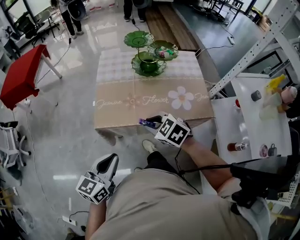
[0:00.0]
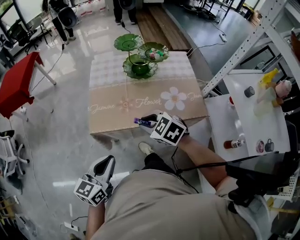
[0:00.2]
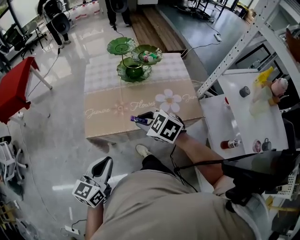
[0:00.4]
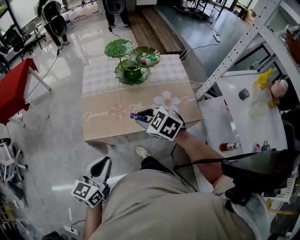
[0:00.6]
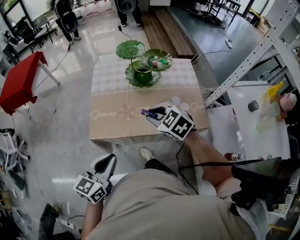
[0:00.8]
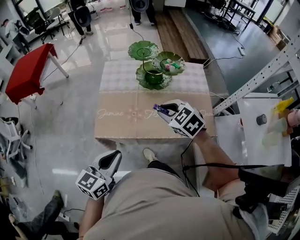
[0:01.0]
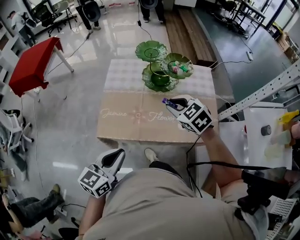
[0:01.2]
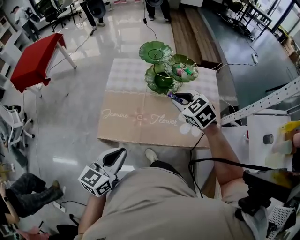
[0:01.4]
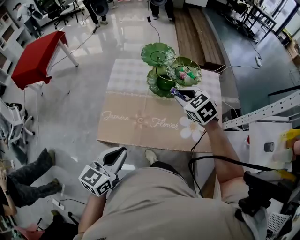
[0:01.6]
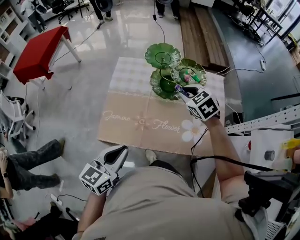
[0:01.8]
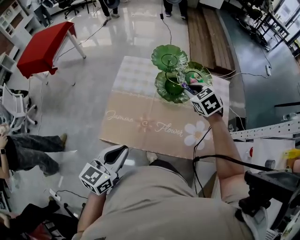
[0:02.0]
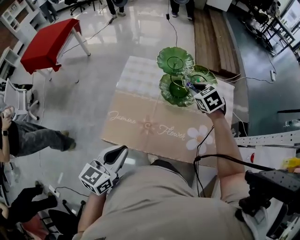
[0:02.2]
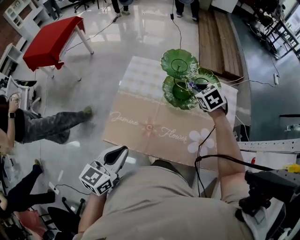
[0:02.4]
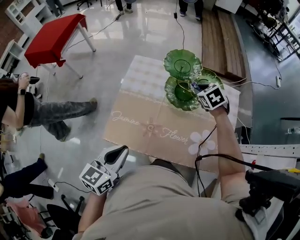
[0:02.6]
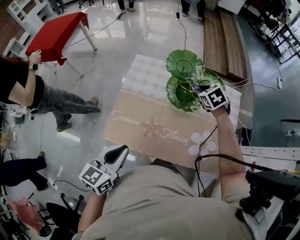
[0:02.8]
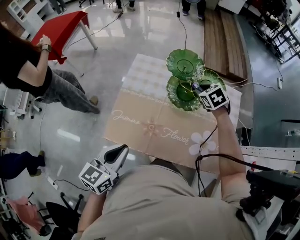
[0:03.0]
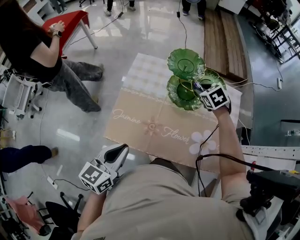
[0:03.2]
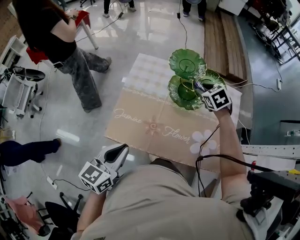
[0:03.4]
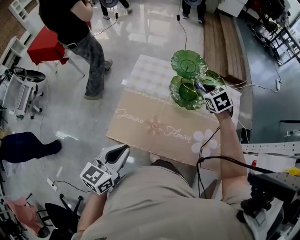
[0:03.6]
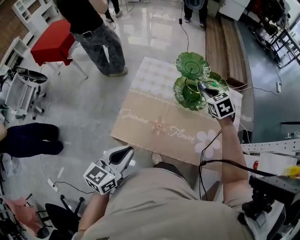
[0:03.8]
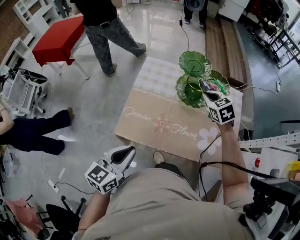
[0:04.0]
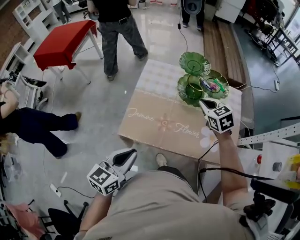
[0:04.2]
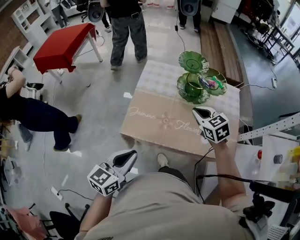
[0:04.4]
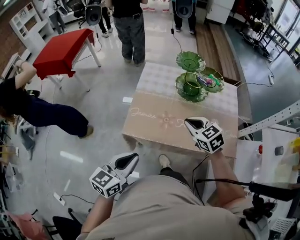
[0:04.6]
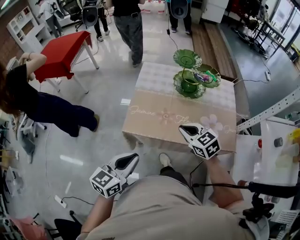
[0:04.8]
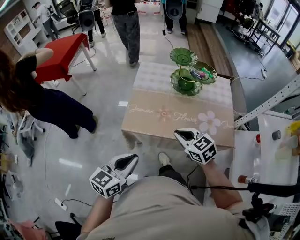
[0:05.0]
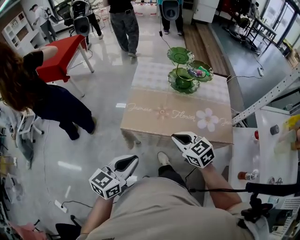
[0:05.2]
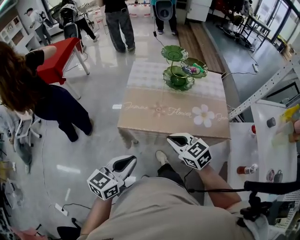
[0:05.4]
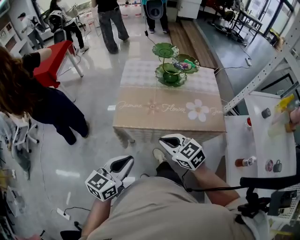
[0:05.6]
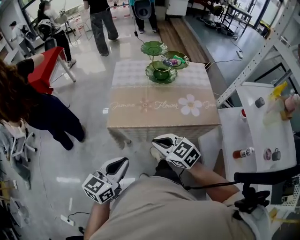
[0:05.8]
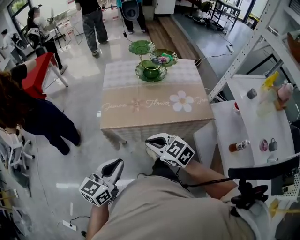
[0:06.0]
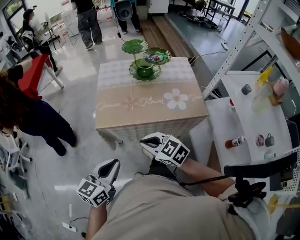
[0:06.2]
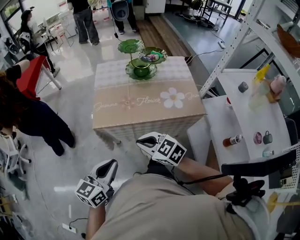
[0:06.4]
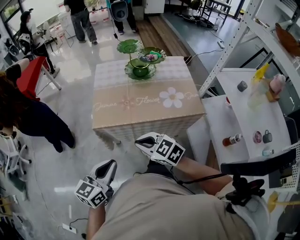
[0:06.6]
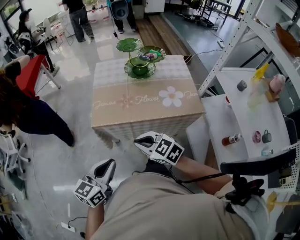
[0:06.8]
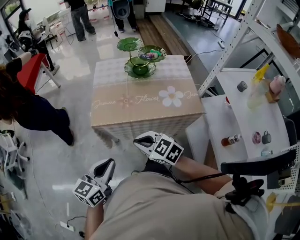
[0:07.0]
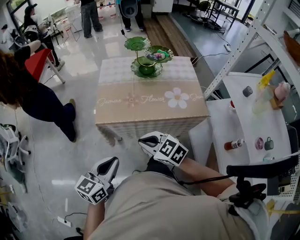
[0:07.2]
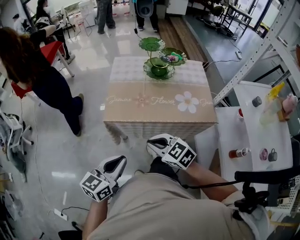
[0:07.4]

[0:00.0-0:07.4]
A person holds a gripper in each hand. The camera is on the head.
0.0 to 1.4 s: The left gripper moves forward and to the right, some 15 cm. Meanwhile the right gripper shifts about 25 cm forward and to the right.
1.4 to 3.0 s: The left gripper goes approximately 10 cm forward, while the right gripper travels forward and downward by roughly 20 cm.
3.0 to 4.4 s: The right gripper travels backward by some 20 cm, and changes its angle by about 20 degrees. The left gripper shifts roughly 10 cm backward.
4.4 to 6.0 s: The right gripper heads backward, covering approximately 30 cm; the left gripper moves backward, roughly 15 cm.
6.0 to 7.4 s: There are only small adjustments of the grippers.

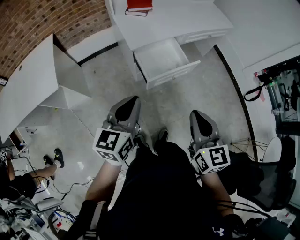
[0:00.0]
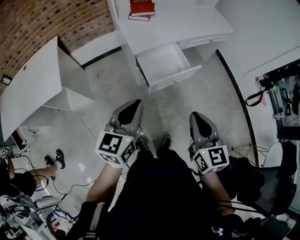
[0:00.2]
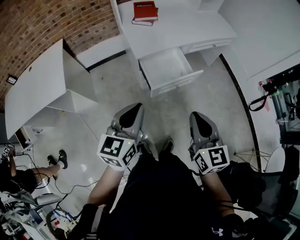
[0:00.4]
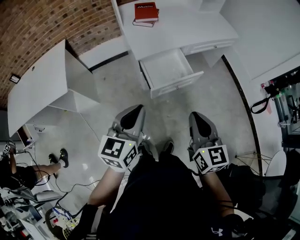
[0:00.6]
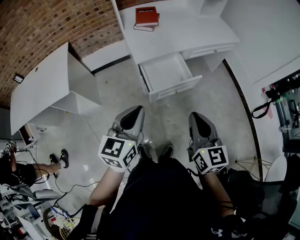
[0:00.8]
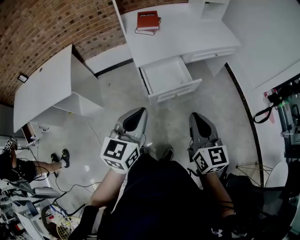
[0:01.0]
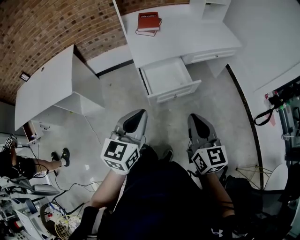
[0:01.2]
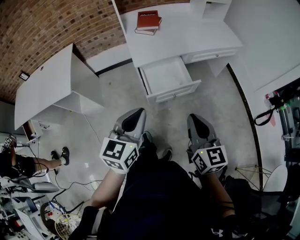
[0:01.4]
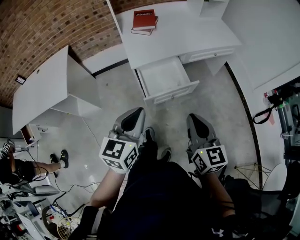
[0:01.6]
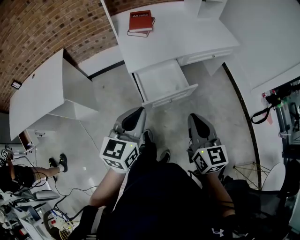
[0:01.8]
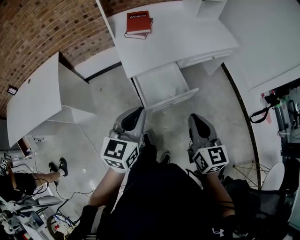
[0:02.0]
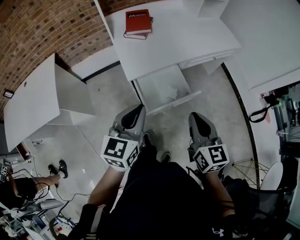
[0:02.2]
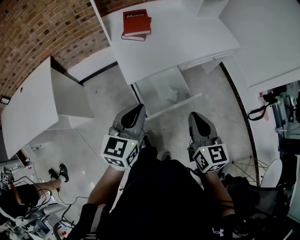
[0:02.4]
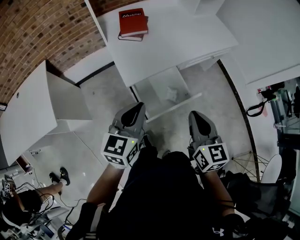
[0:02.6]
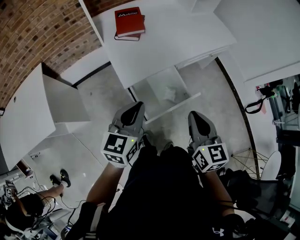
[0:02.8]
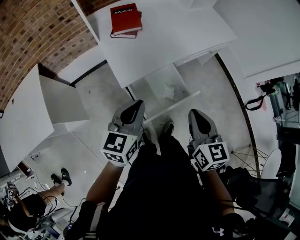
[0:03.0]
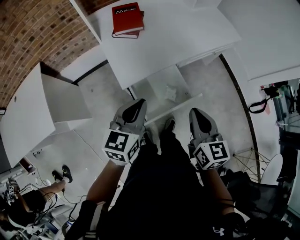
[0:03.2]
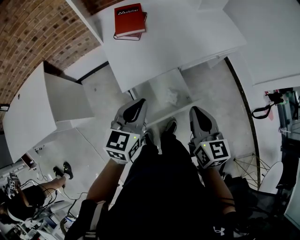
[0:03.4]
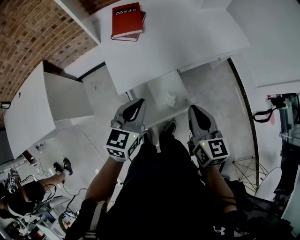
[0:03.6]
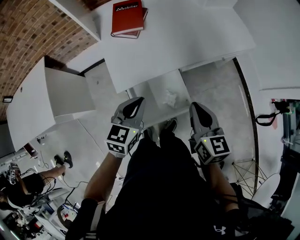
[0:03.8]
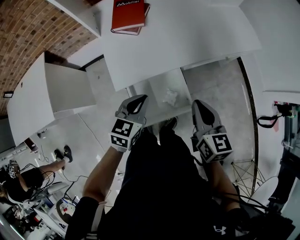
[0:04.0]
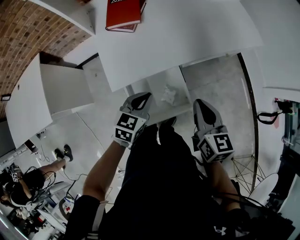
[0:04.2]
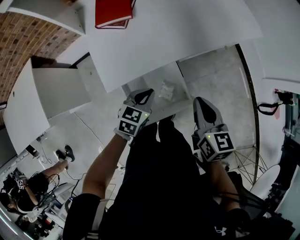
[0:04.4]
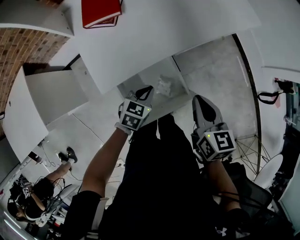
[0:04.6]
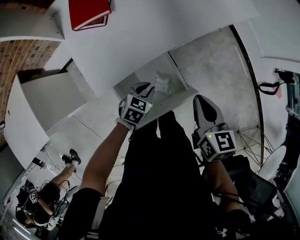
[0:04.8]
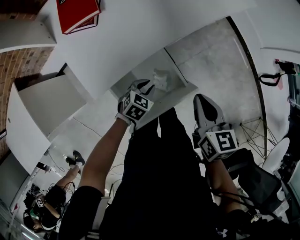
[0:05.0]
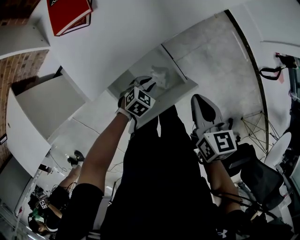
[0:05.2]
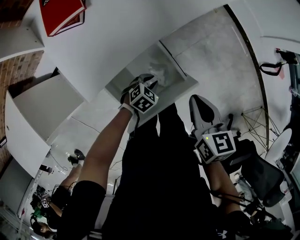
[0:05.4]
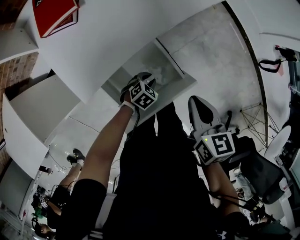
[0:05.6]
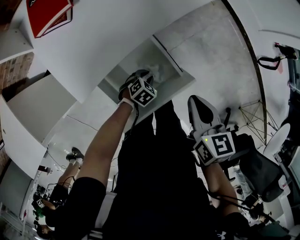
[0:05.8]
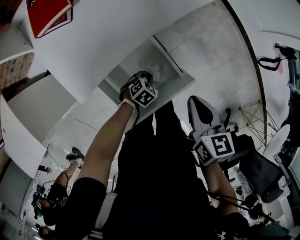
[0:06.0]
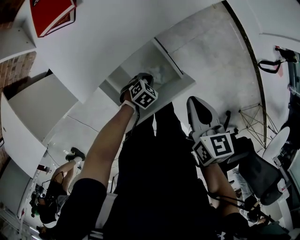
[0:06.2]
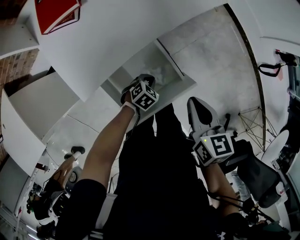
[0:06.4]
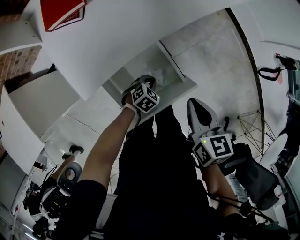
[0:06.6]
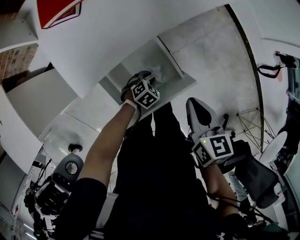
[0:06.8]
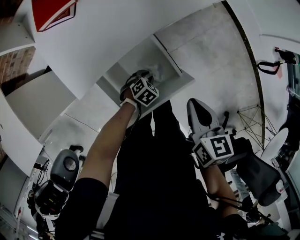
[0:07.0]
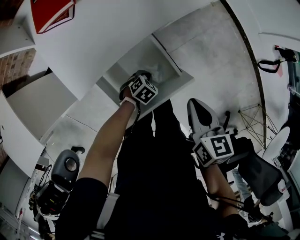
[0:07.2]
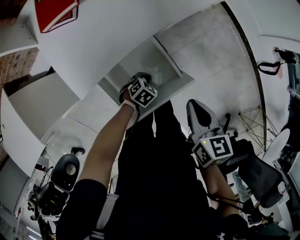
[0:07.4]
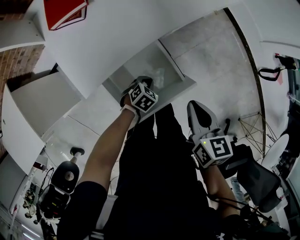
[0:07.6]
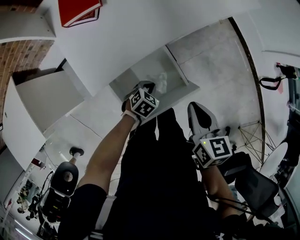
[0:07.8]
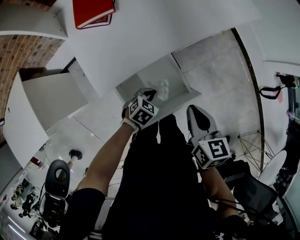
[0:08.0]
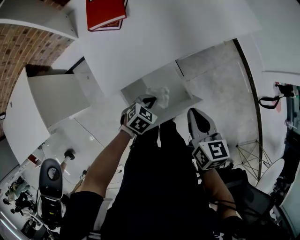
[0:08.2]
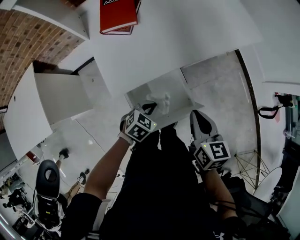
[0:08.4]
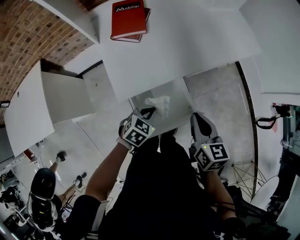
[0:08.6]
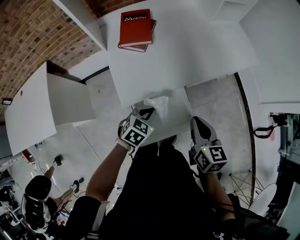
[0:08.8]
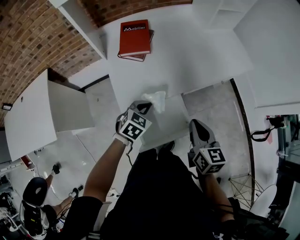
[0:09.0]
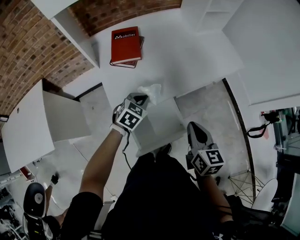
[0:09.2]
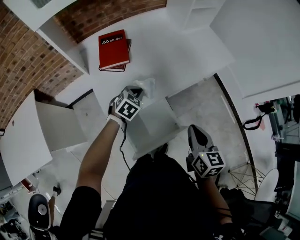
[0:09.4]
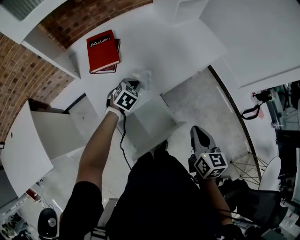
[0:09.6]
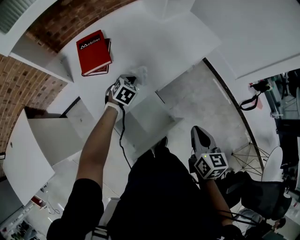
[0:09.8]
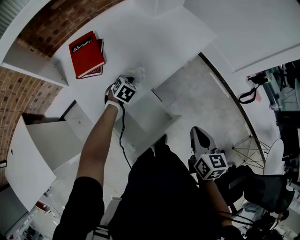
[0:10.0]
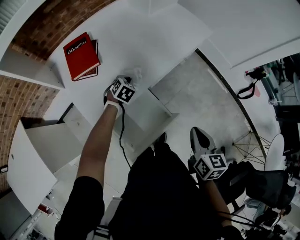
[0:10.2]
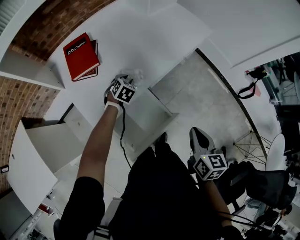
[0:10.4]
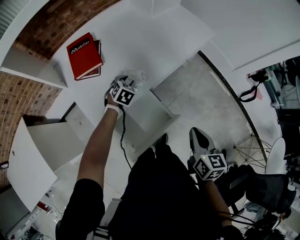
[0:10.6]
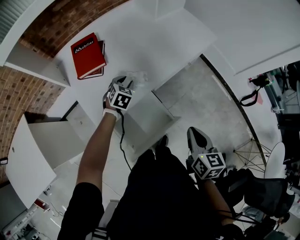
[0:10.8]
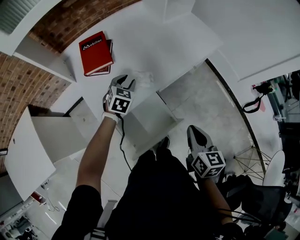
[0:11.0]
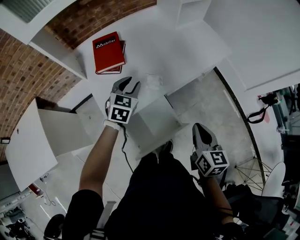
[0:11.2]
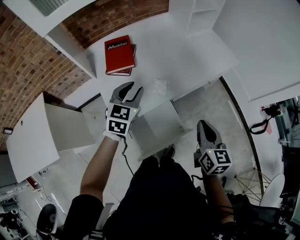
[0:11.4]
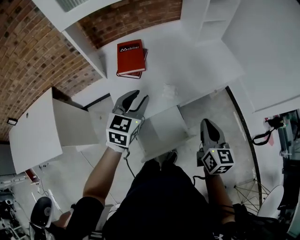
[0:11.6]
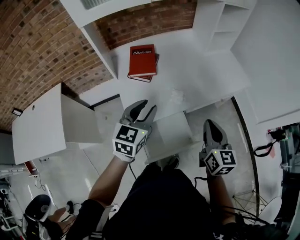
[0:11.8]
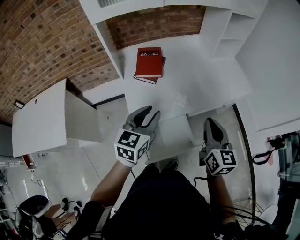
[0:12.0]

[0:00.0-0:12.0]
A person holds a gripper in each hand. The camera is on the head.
0.0 to 1.6 s: The left gripper is displaced to the right by about 10 cm. The right gripper travels to the right and forward by some 10 cm.
1.6 to 3.0 s: The two grippers go roughly 20 cm forward.
3.0 to 4.4 s: The left gripper goes approximately 25 cm downward, forward and to the right, and rotates approximately 20 degrees. Meanwhile the right gripper is displaced forward, downward and to the right by approximately 20 cm.
4.4 to 6.0 s: The left gripper heads downward, covering some 25 cm, changes its angle by roughly 40 degrees, and opens, then closes again, while the right gripper moves downward, roughly 10 cm.
6.0 to 7.6 s: The left gripper opens and closes again.
7.6 to 9.0 s: The right gripper is displaced upward and to the left by approximately 15 cm, while the left gripper travels upward and to the left by some 30 cm, and swivels about 30 degrees.
9.0 to 10.4 s: The left gripper goes some 20 cm forward and downward, and opens up. Meanwhile the right gripper travels to the right by some 15 cm, and swivels about 30 degrees.
10.4 to 12.0 s: The right gripper is displaced upward, to the left and forward by some 20 cm, and rotates about 30 degrees; the left gripper heads upward and backward, covering about 35 cm, and angles its fingers upward, by roughly 40 degrees.

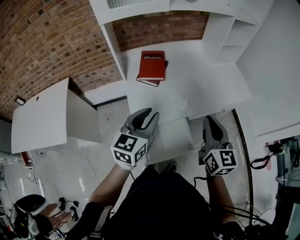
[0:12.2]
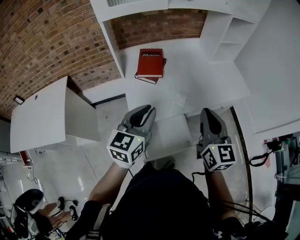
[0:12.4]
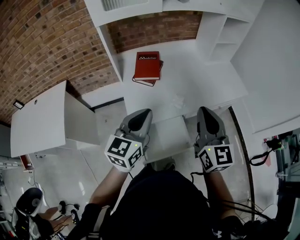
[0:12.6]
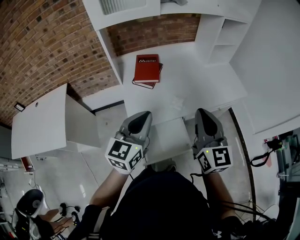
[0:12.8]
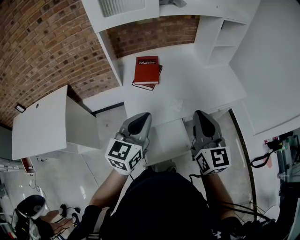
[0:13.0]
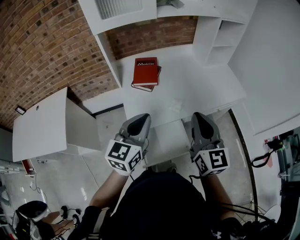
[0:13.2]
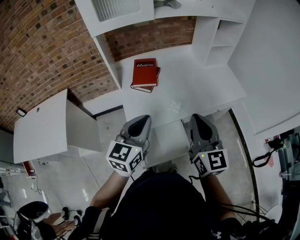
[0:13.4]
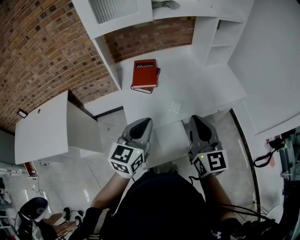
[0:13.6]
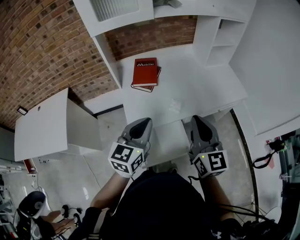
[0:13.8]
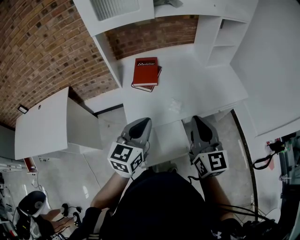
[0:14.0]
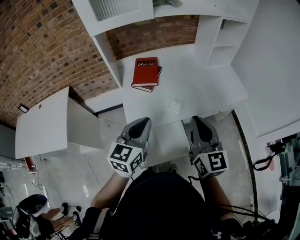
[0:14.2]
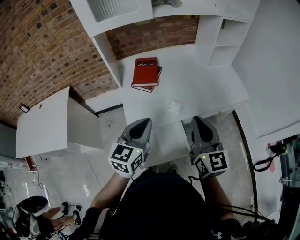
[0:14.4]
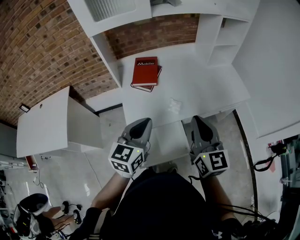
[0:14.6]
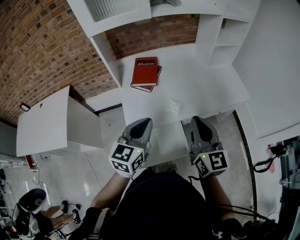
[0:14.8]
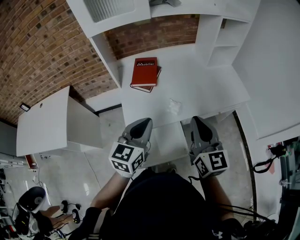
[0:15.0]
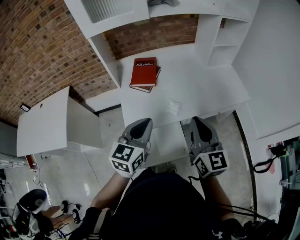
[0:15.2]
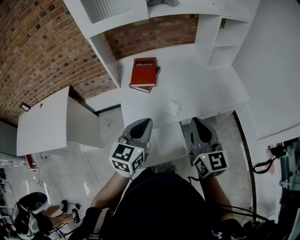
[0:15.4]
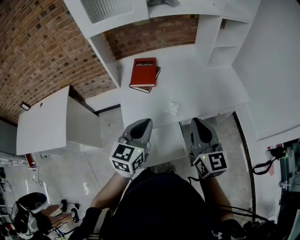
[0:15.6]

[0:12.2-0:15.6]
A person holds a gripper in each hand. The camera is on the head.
12.2 to 13.8 s: The left gripper closes.
13.8 to 15.6 s: The right gripper shifts by roughly 5 cm.

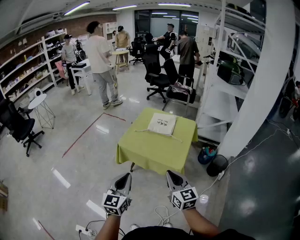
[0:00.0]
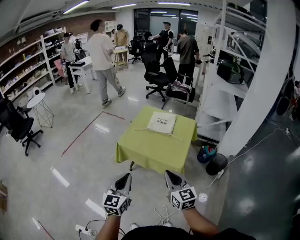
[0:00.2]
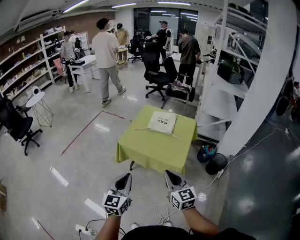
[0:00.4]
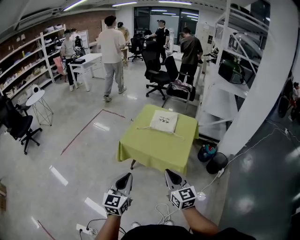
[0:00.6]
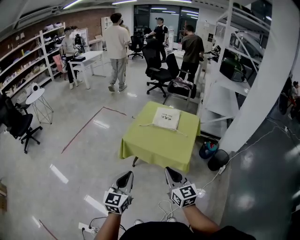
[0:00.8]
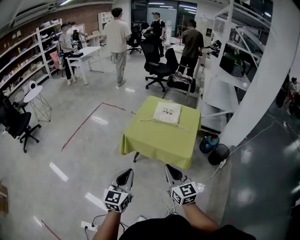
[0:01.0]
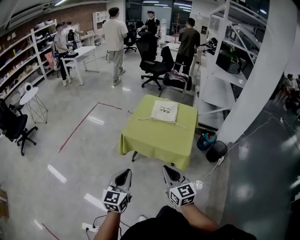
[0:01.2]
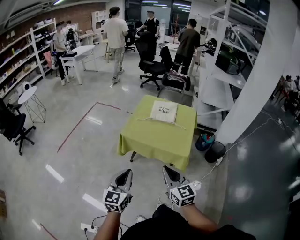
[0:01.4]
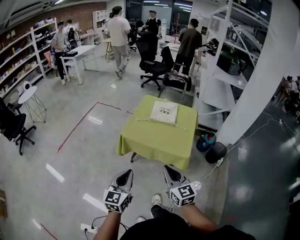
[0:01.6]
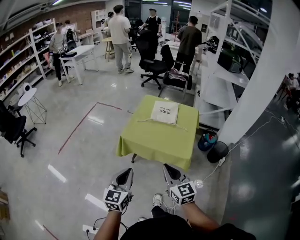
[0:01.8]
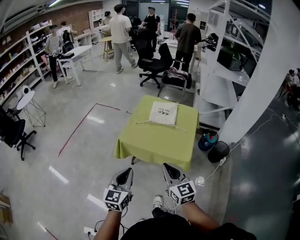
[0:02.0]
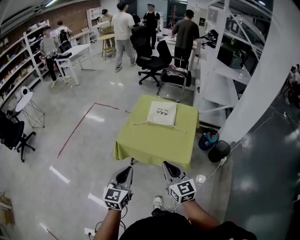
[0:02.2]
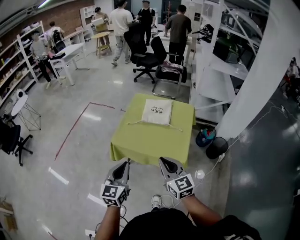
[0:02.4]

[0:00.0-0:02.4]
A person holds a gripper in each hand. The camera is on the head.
0.0 to 1.2 s: Both grippers move to the left, about 10 cm.
1.2 to 2.4 s: The grippers both shift forward by roughly 15 cm.
